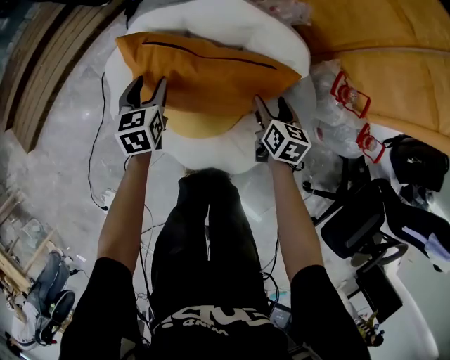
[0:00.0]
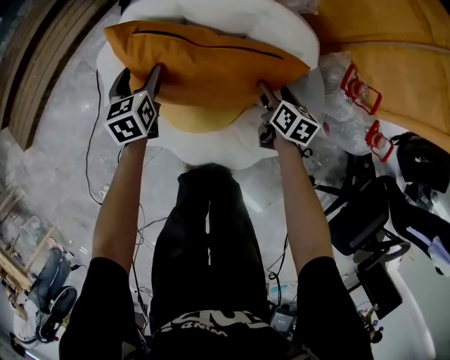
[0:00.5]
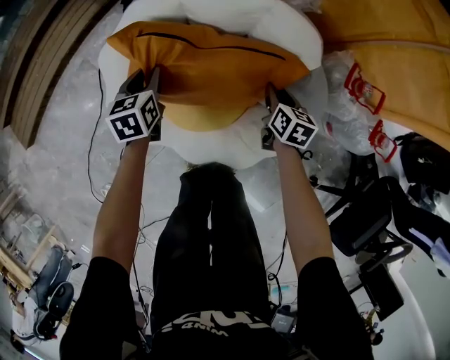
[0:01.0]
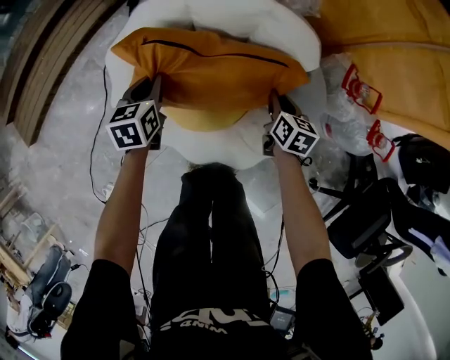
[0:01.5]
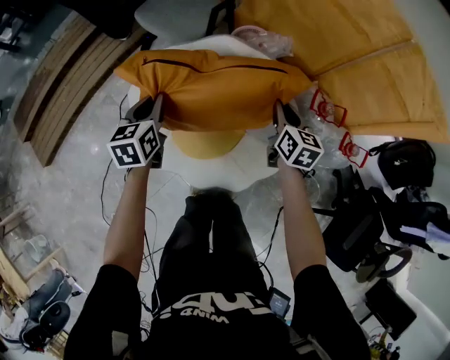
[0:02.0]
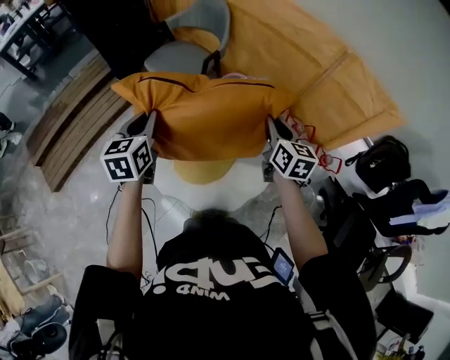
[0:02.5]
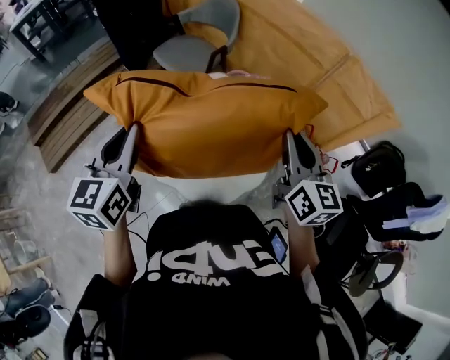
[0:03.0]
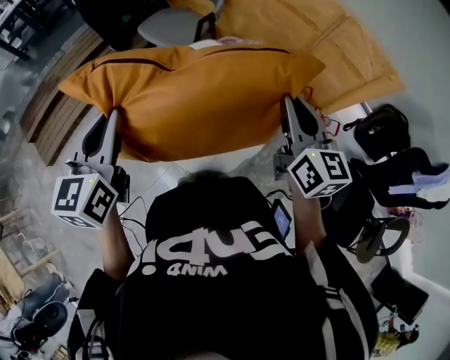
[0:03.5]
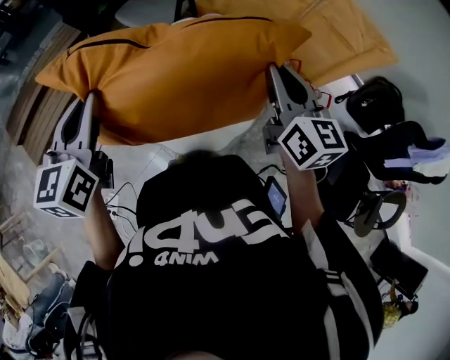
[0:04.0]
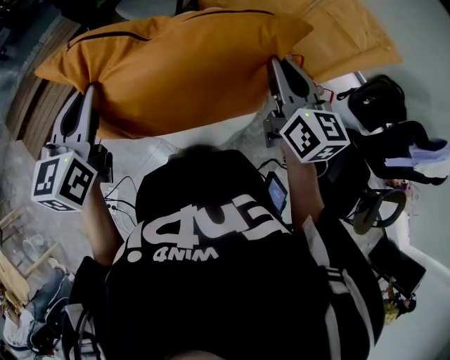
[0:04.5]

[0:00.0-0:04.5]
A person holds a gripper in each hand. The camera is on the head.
0:00.0 to 0:02.0: The grippers both shift upward by about 20 cm. The right gripper closes up, while the left gripper closes its fingers.
0:02.0 to 0:04.5: Both grippers travel together upward and backward, some 40 cm. The left gripper rotates roughly 20 degrees, while the right gripper rotates roughly 20 degrees.

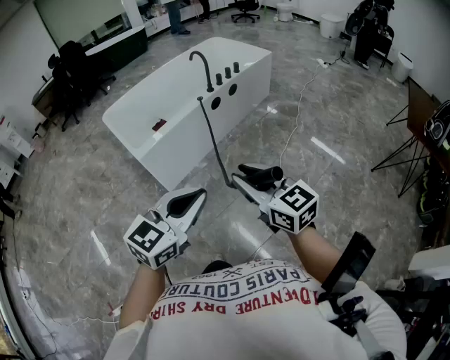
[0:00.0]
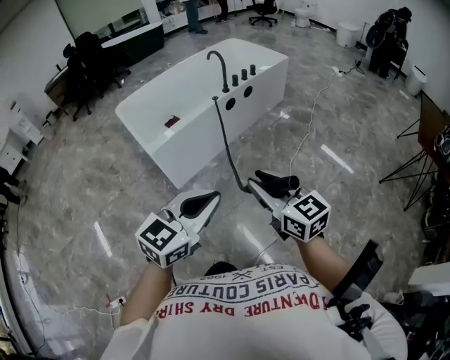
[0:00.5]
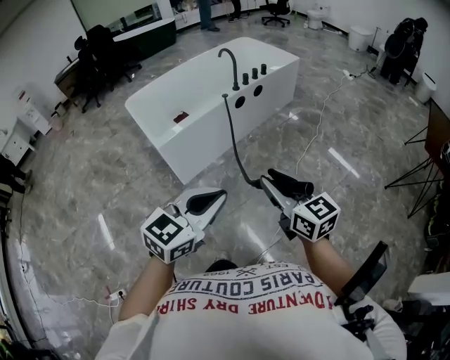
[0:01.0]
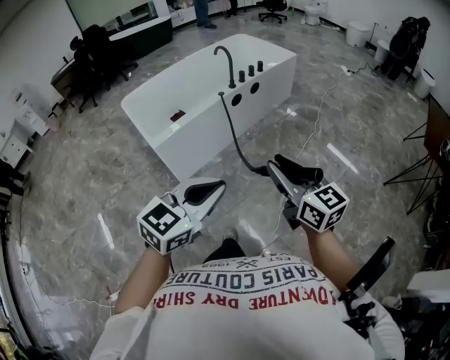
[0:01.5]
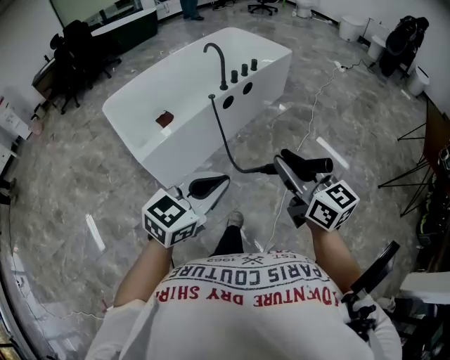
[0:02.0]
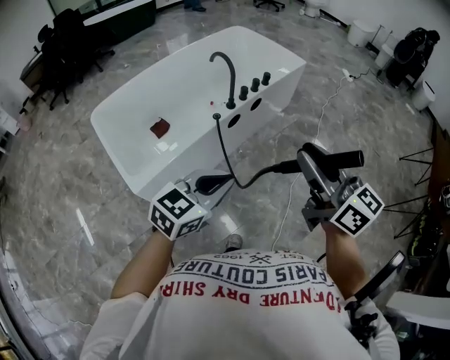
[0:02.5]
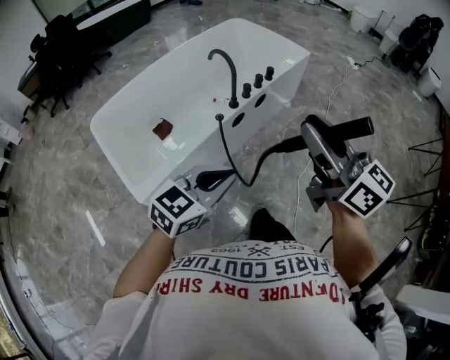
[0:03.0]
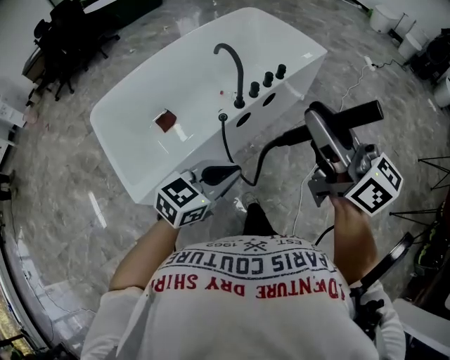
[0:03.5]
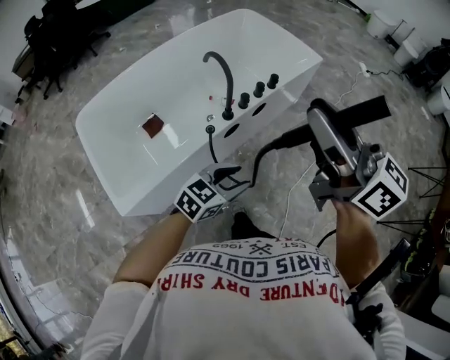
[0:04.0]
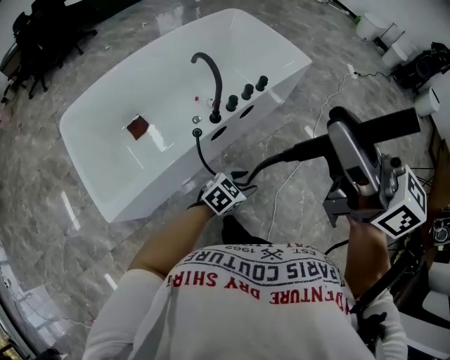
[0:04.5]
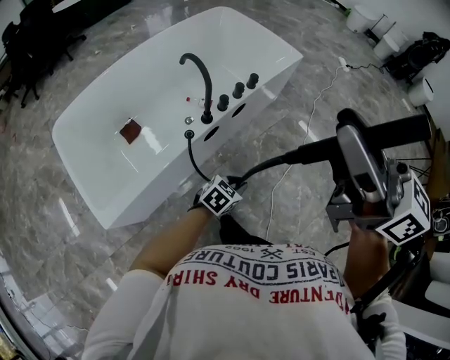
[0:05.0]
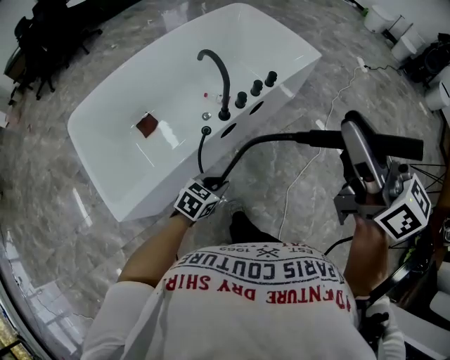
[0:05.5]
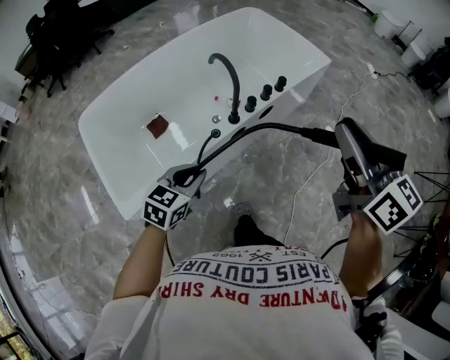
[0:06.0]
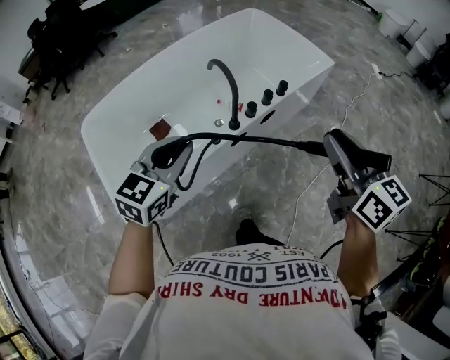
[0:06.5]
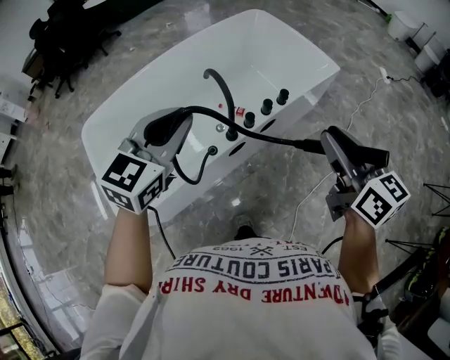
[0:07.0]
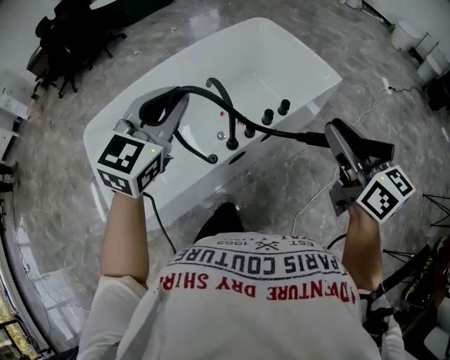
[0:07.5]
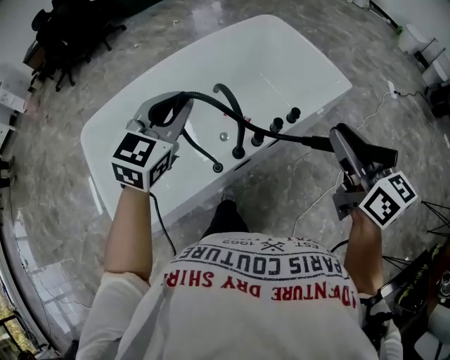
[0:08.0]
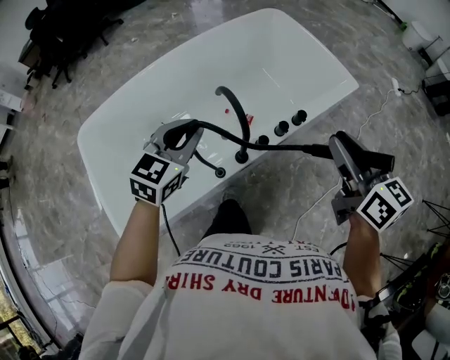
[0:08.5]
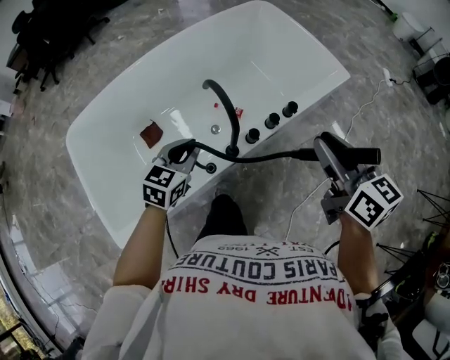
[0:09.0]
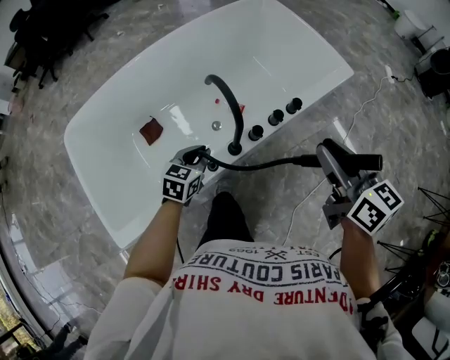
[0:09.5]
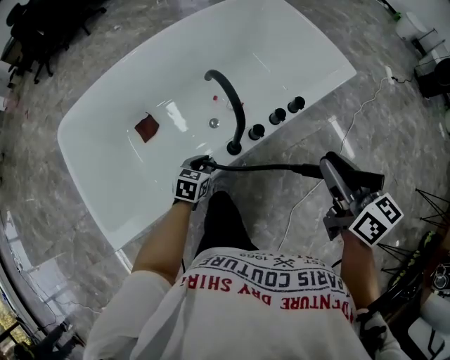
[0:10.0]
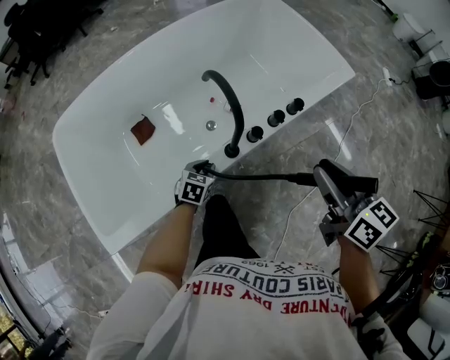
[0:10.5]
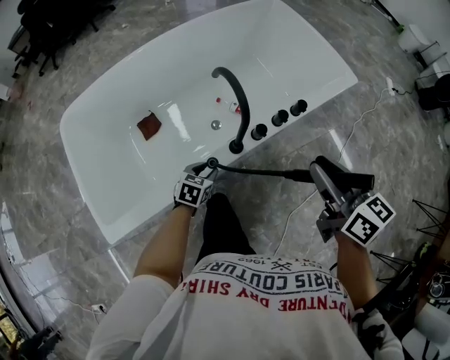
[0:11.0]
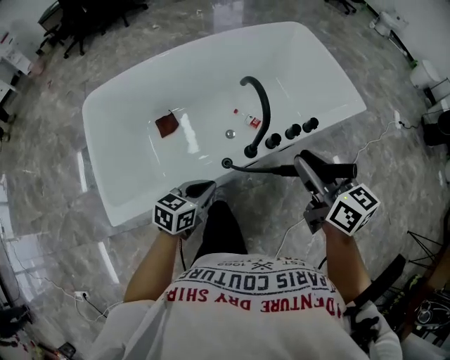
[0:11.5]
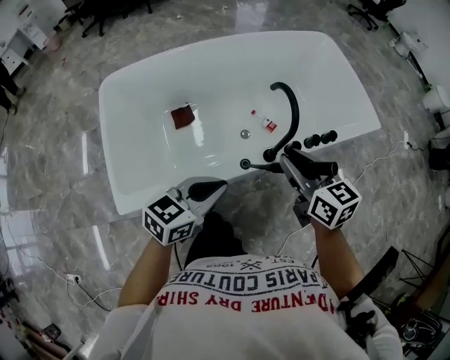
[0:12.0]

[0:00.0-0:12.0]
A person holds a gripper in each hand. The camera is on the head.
0:00.0 to 0:02.0: Both grippers move forward, roughly 15 cm.
0:02.0 to 0:04.0: The two grippers travel together, forward, about 40 cm. The left gripper shifts approximately 15 cm downward, and opens up.
0:04.0 to 0:06.0: The left gripper goes about 15 cm to the left, rotates about 20 degrees, and closes up, while the right gripper moves to the right and downward, about 5 cm.
0:06.0 to 0:08.0: The right gripper travels forward by some 20 cm; the left gripper moves forward and upward, about 30 cm, and swivels roughly 30 degrees.
0:08.0 to 0:10.0: The left gripper is displaced downward by approximately 40 cm, and swivels approximately 40 degrees; the right gripper goes approximately 10 cm downward.
0:10.0 to 0:12.0: The left gripper goes about 30 cm upward and backward, rotates some 30 degrees, and opens and closes again; the right gripper shifts approximately 20 cm to the left, and turns by approximately 30 degrees.

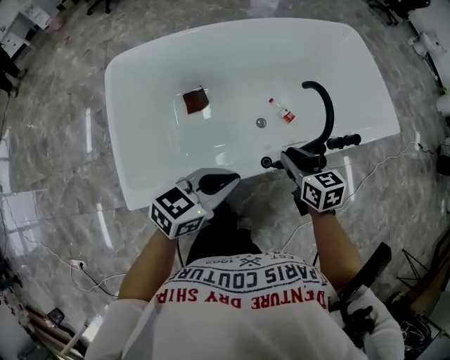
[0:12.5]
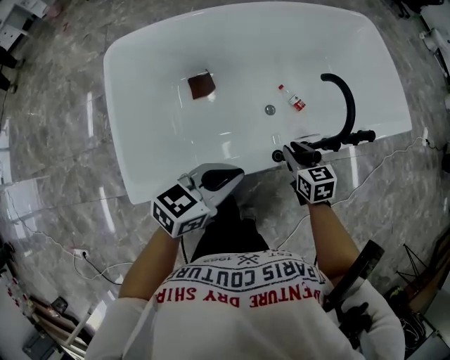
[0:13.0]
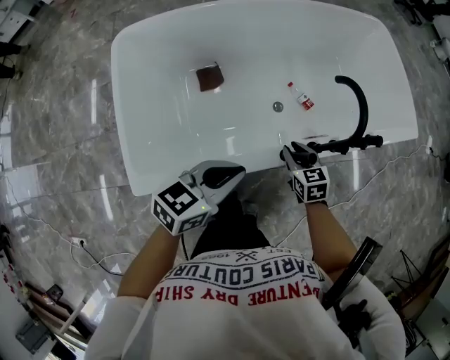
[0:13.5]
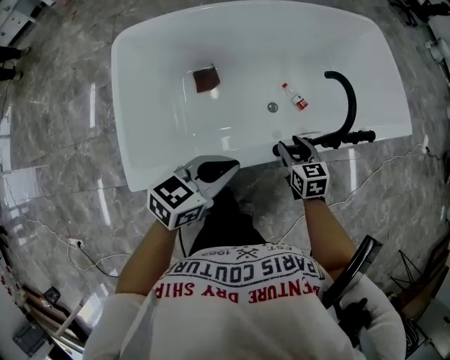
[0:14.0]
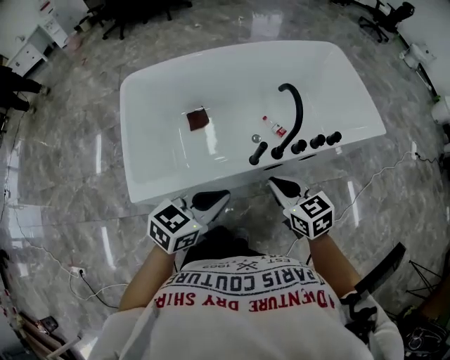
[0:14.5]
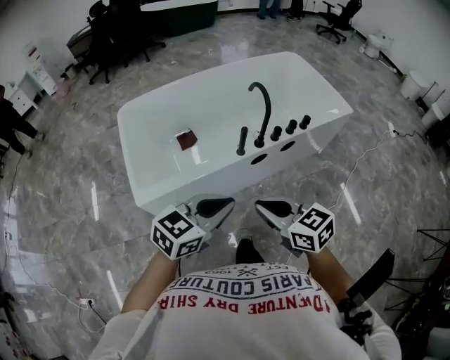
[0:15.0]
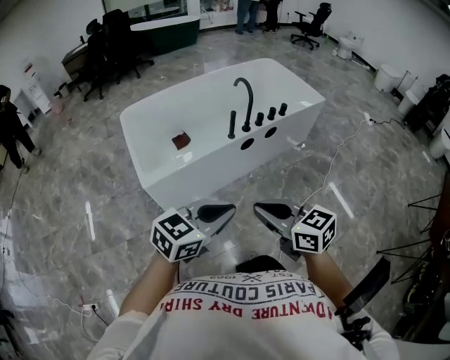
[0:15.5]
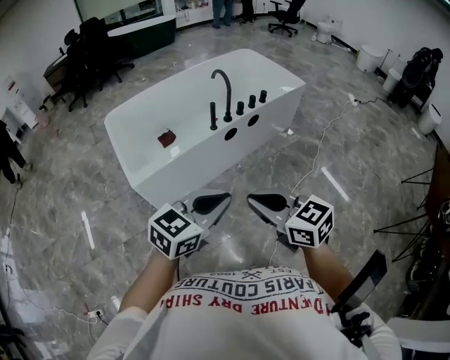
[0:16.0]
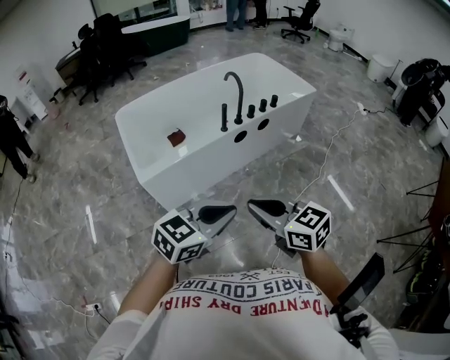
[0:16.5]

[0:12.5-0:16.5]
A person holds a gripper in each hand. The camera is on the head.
0:12.5 to 0:14.5: The left gripper moves backward, roughly 10 cm. The right gripper moves backward and upward, roughly 15 cm, and closes up.
0:14.5 to 0:16.5: The pair of grippers is taken backward, approximately 40 cm. The left gripper rotates roughly 30 degrees.

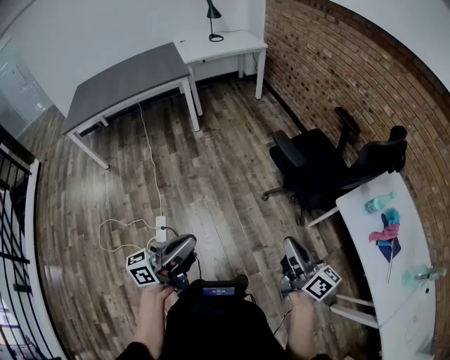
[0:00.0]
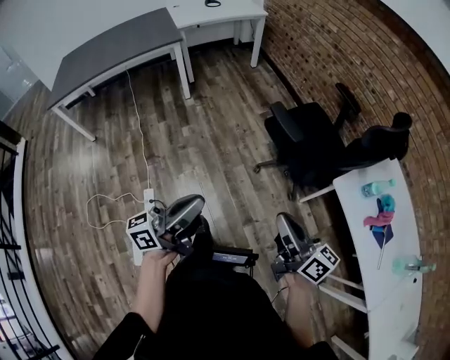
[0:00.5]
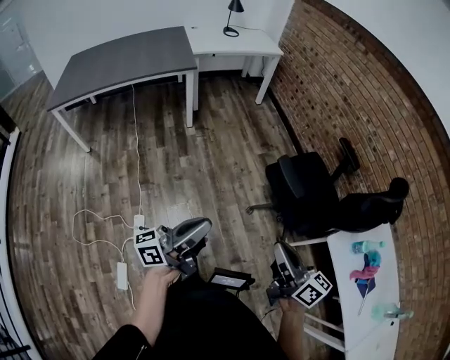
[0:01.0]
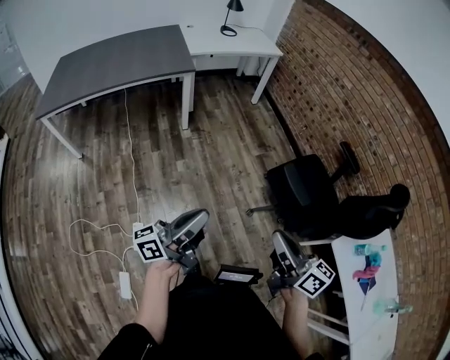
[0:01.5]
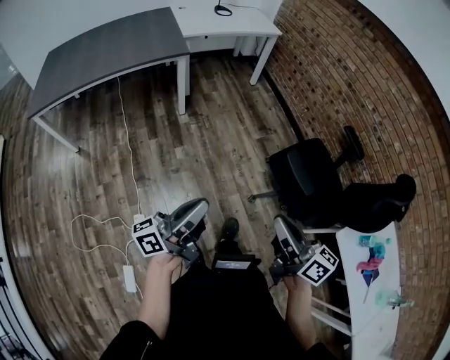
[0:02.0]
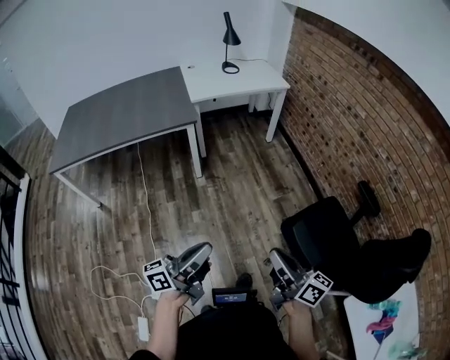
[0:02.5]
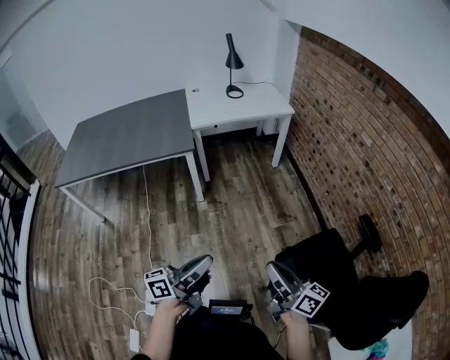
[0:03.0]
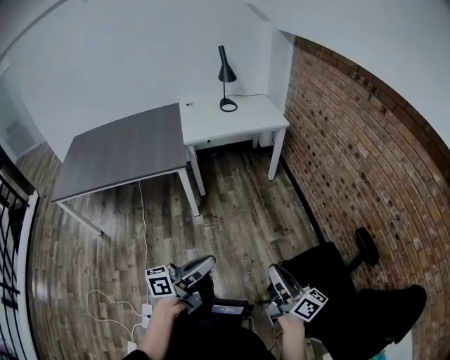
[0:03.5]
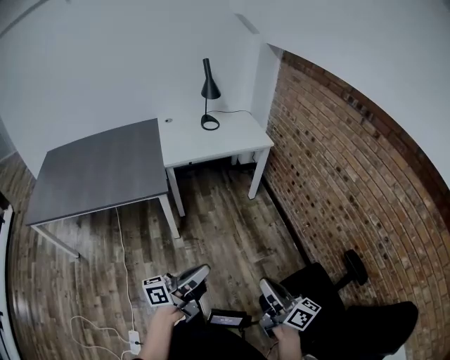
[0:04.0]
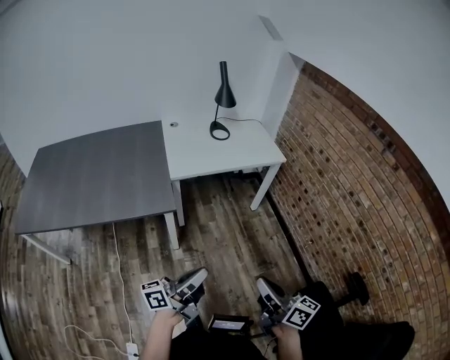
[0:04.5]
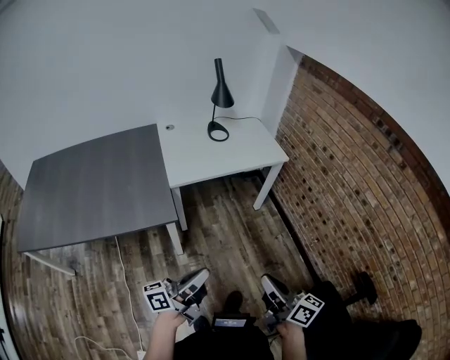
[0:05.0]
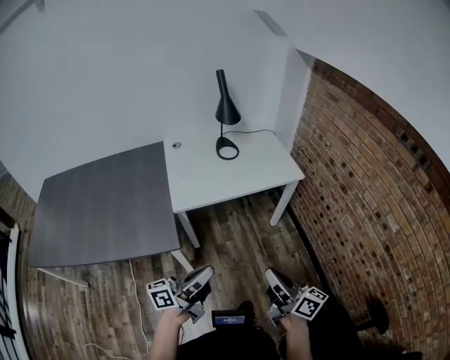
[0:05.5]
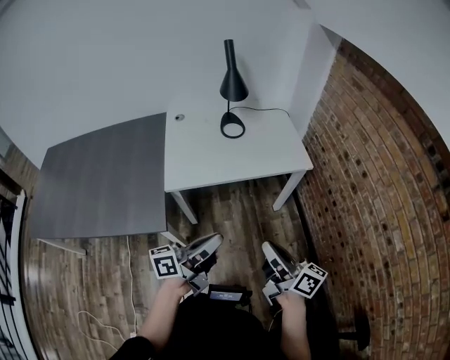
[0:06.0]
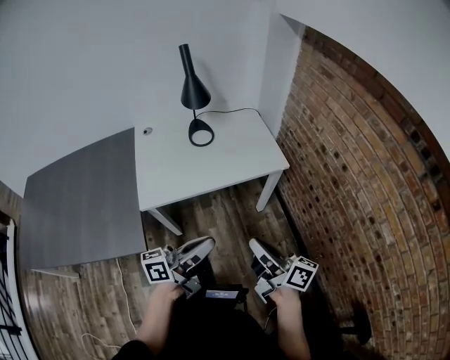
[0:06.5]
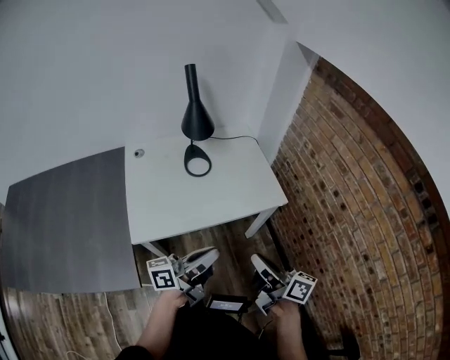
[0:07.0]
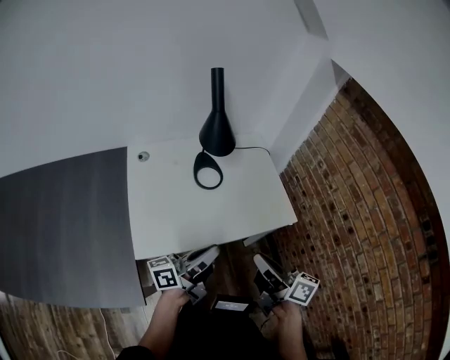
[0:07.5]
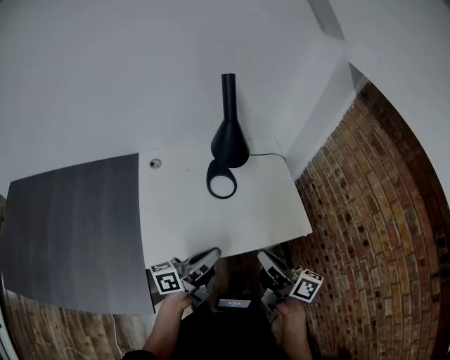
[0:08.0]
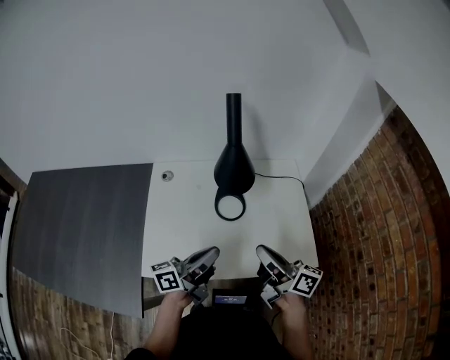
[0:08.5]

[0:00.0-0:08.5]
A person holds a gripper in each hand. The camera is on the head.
0:00.0 to 0:02.0: The right gripper heads forward and to the left, covering about 30 cm, while the left gripper is displaced forward by roughly 30 cm.
0:02.0 to 0:04.0: Both grippers are carried forward, approximately 40 cm.
0:04.0 to 0:06.5: Both grippers are carried forward, about 50 cm.
0:06.5 to 0:08.5: The grippers both shift forward by some 35 cm. The left gripper swivels roughly 20 degrees.
